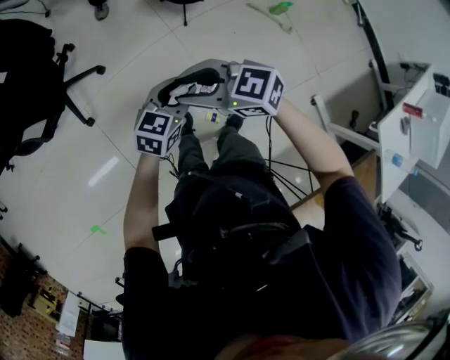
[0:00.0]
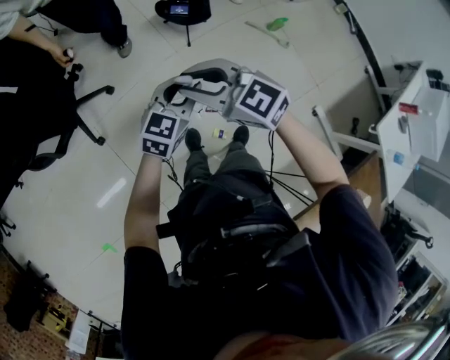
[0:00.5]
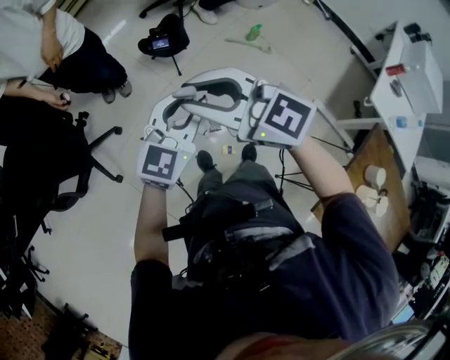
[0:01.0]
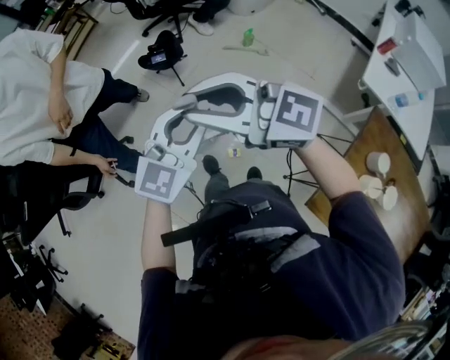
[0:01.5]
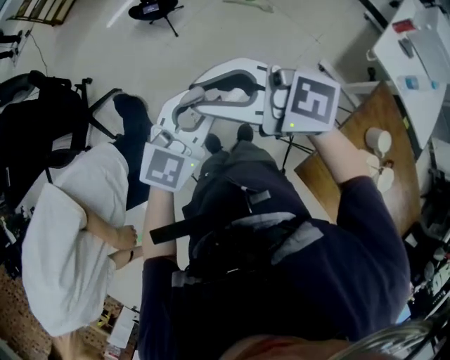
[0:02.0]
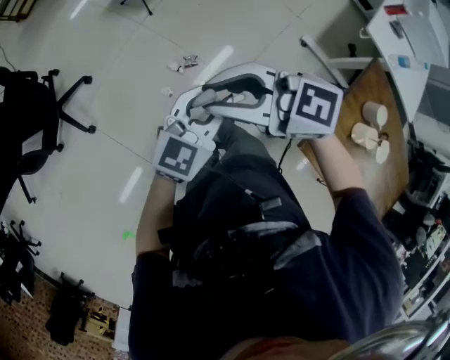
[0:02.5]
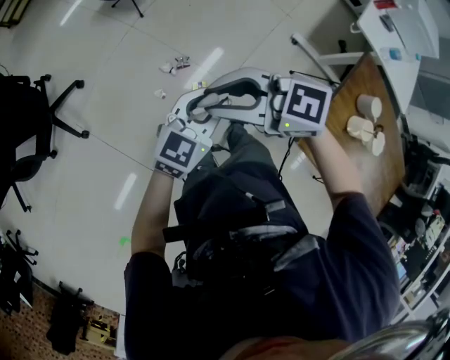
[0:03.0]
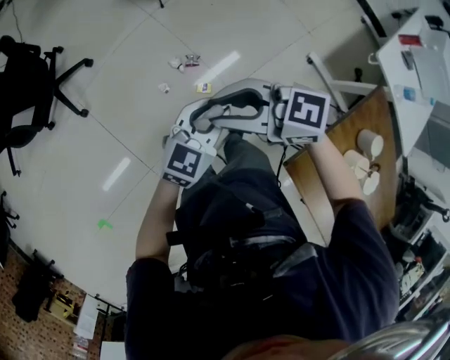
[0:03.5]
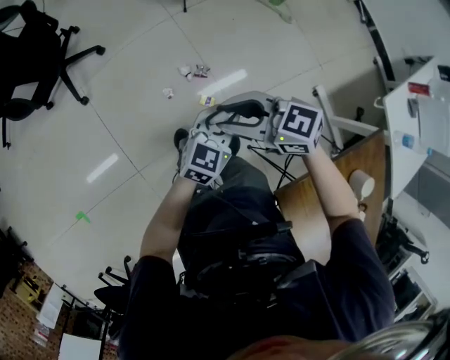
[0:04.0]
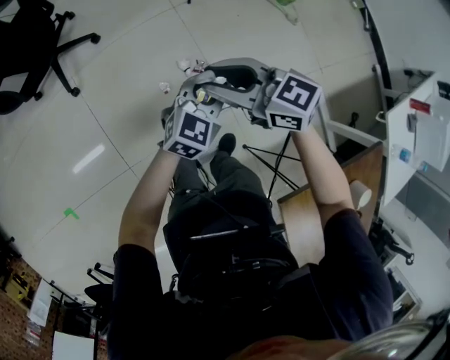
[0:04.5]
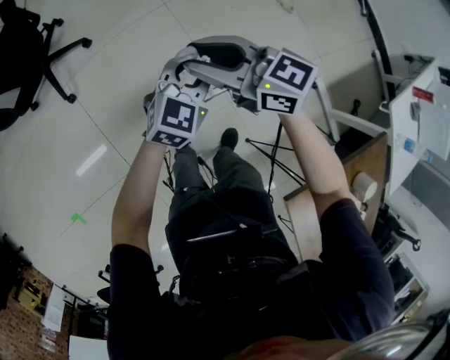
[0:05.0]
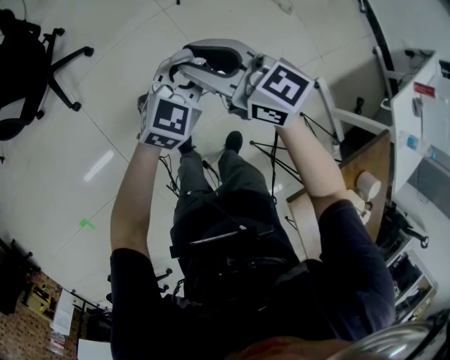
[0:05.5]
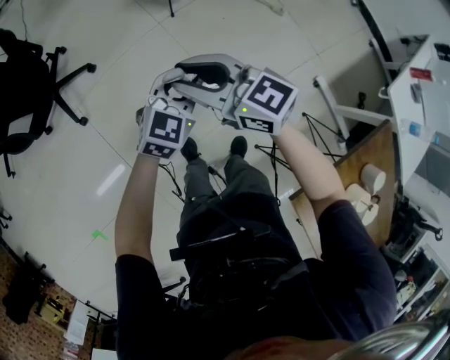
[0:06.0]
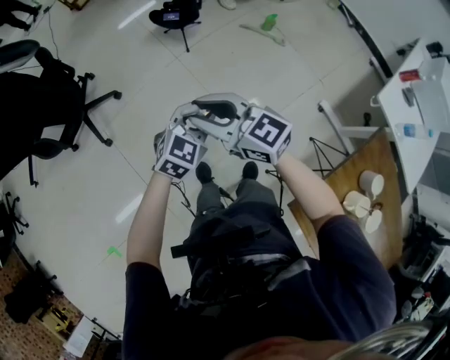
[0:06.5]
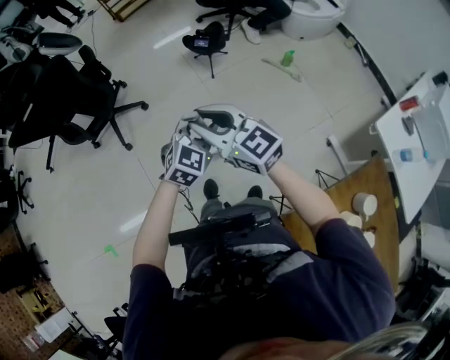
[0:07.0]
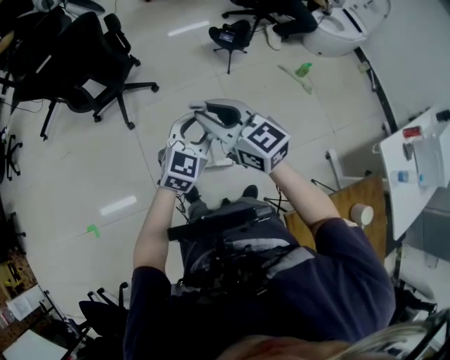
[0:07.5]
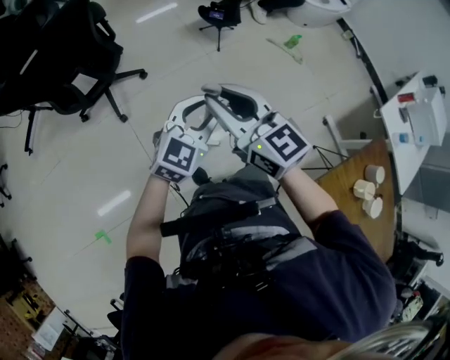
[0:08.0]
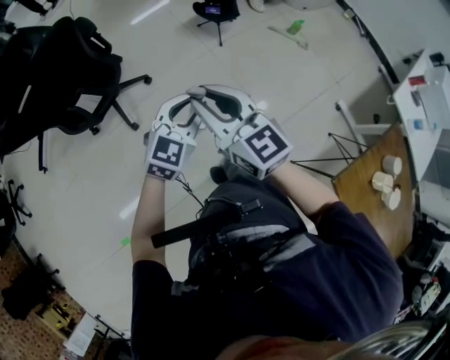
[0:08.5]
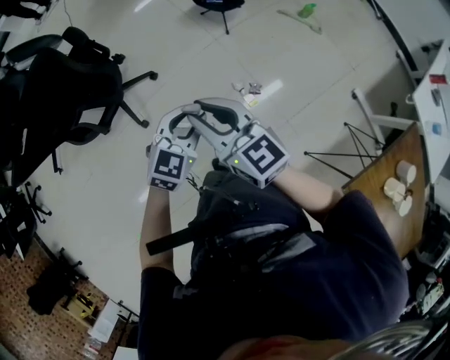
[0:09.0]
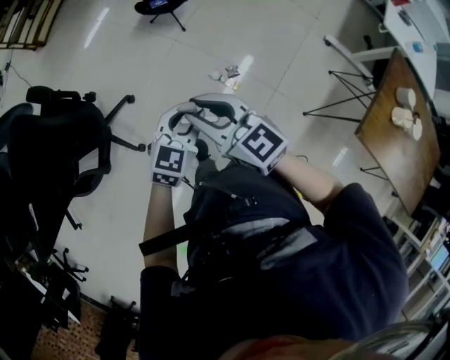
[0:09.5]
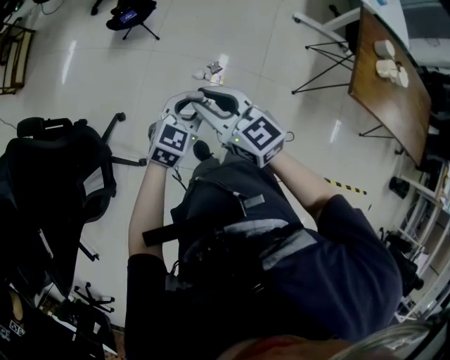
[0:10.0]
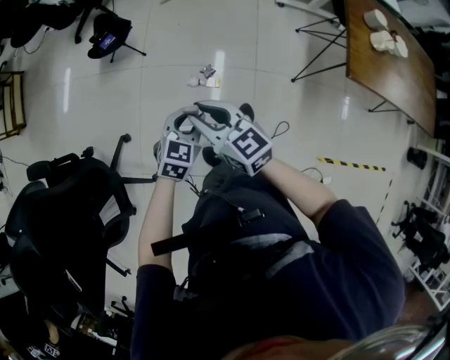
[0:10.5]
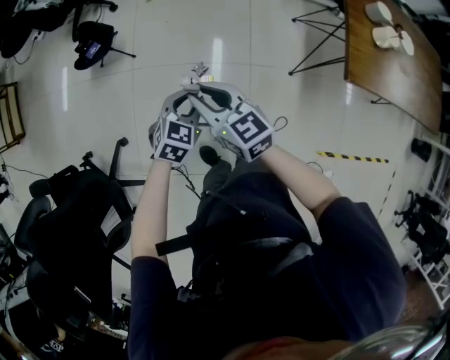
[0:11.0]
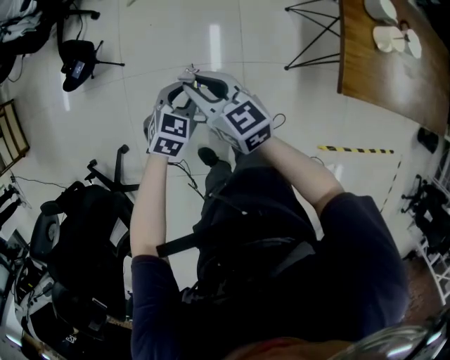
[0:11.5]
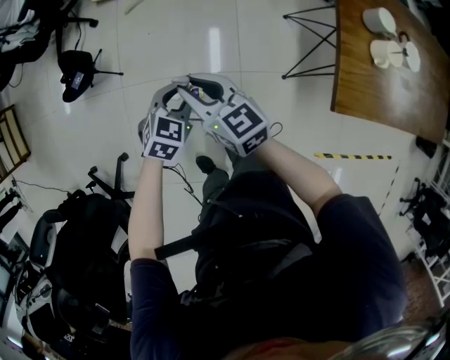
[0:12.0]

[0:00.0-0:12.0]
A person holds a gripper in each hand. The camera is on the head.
0:00.0 to 0:02.0: The left gripper moves roughly 35 cm, and changes its angle by about 30 degrees. The right gripper ends up some 35 cm from where it was, and changes its angle by about 30 degrees.
0:02.0 to 0:04.0: The two grippers go roughly 25 cm downward. The left gripper swivels roughly 20 degrees. The right gripper changes its angle by roughly 30 degrees.
0:04.0 to 0:06.0: The left gripper ends up approximately 15 cm from where it was. The right gripper moves about 15 cm, and changes its angle by about 20 degrees.
0:06.0 to 0:08.0: Both grippers move to the left, upward and backward, about 30 cm.
0:08.0 to 0:10.0: The grippers both shift downward by some 15 cm. The right gripper turns by some 40 degrees. The left gripper turns by approximately 50 degrees.
0:10.0 to 0:12.0: The grippers both shift forward and to the right by approximately 35 cm. The right gripper rotates approximately 20 degrees, while the left gripper rotates approximately 20 degrees.

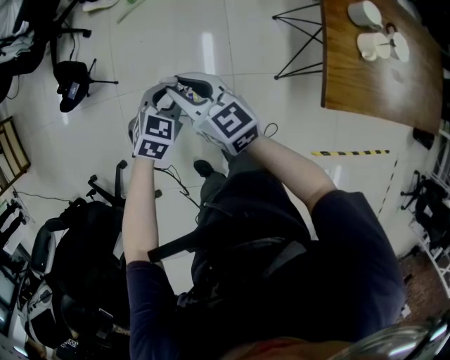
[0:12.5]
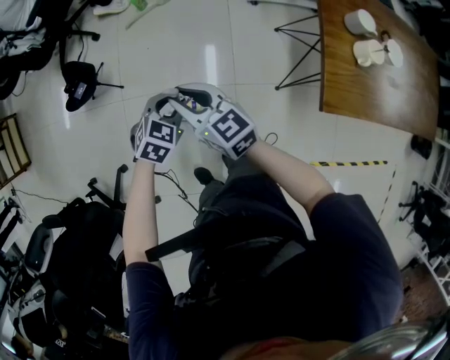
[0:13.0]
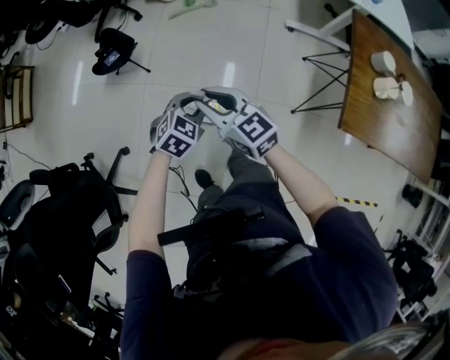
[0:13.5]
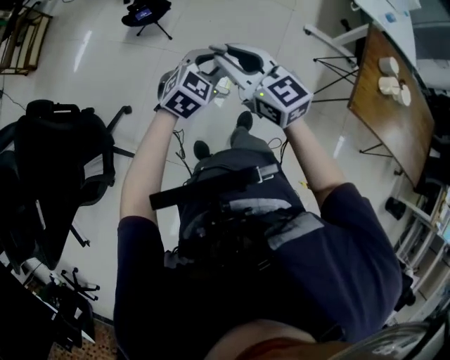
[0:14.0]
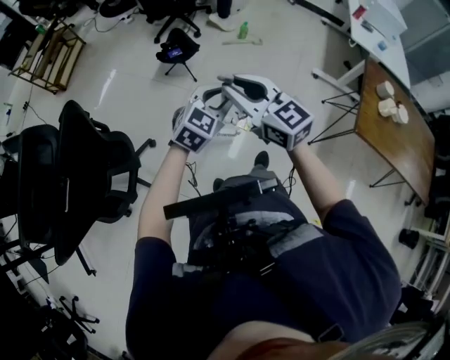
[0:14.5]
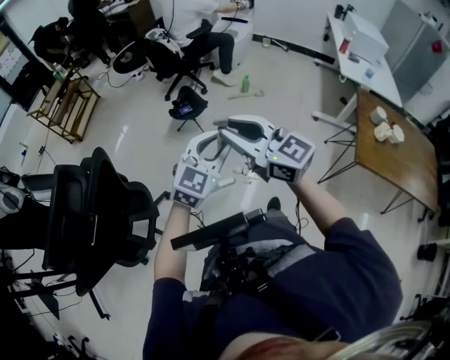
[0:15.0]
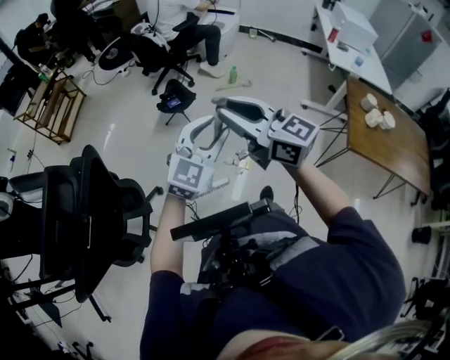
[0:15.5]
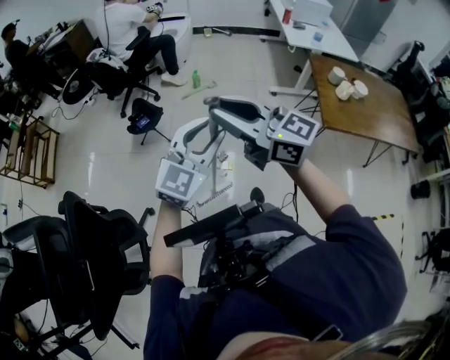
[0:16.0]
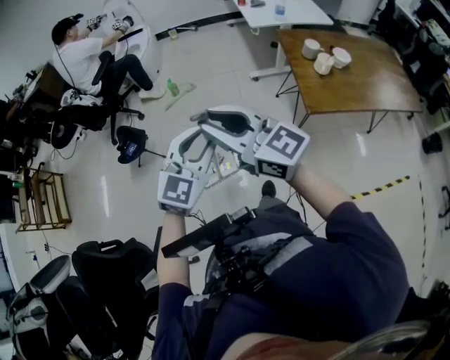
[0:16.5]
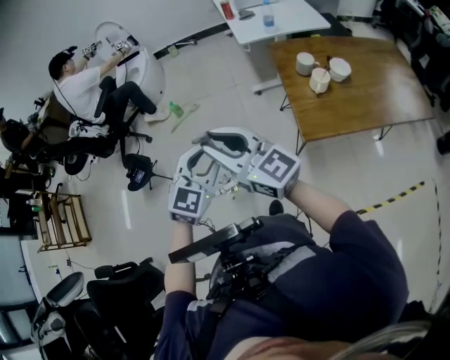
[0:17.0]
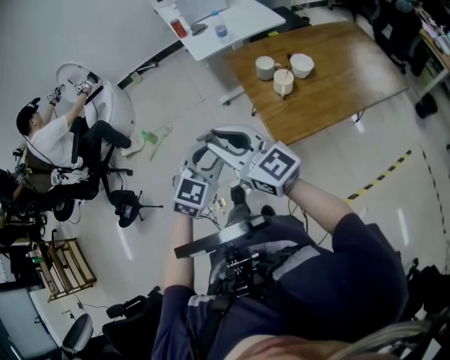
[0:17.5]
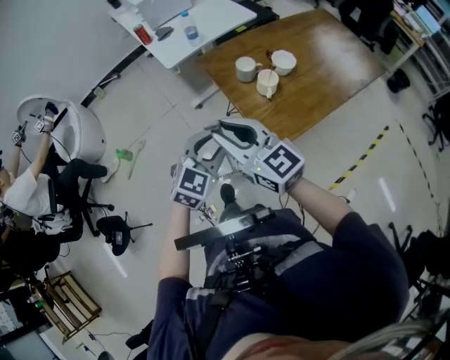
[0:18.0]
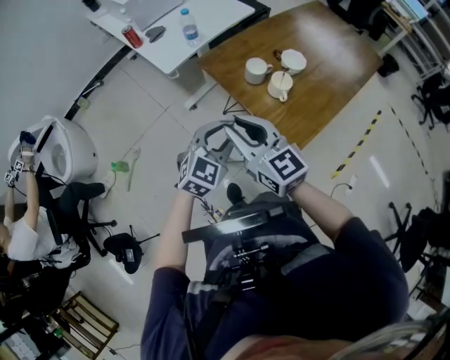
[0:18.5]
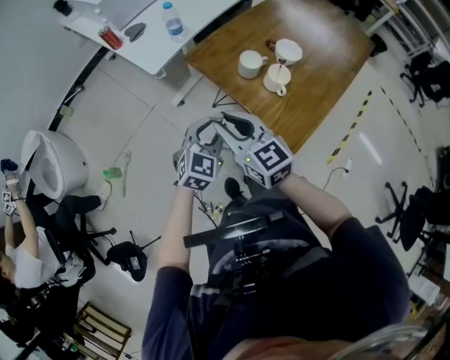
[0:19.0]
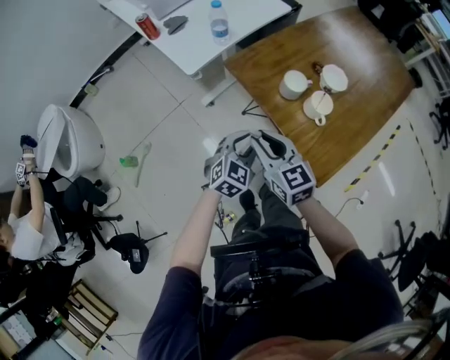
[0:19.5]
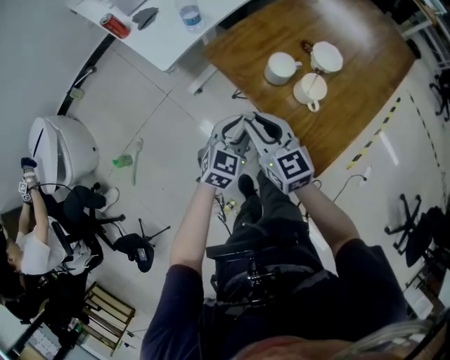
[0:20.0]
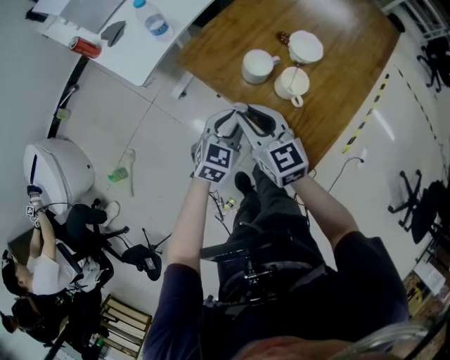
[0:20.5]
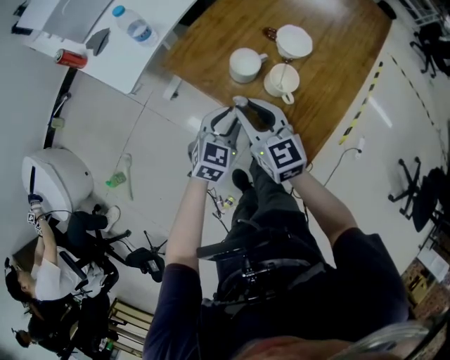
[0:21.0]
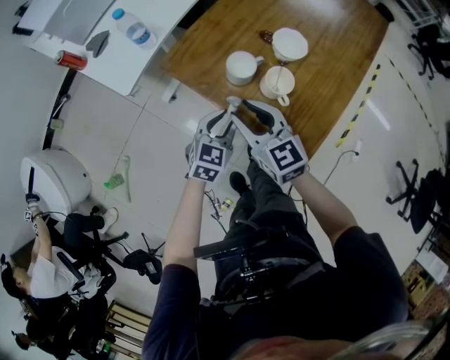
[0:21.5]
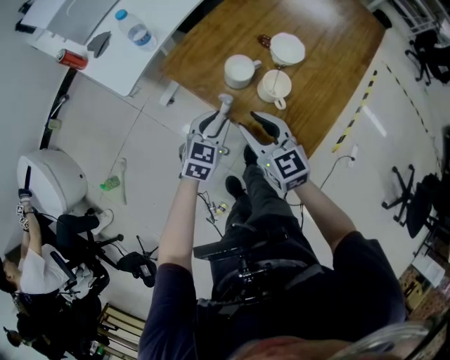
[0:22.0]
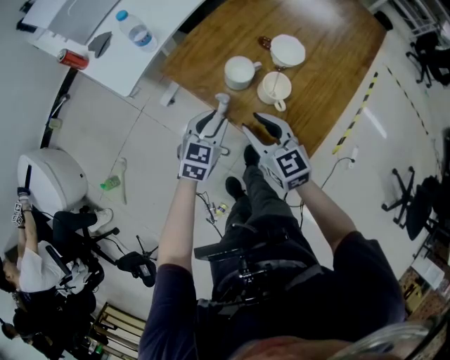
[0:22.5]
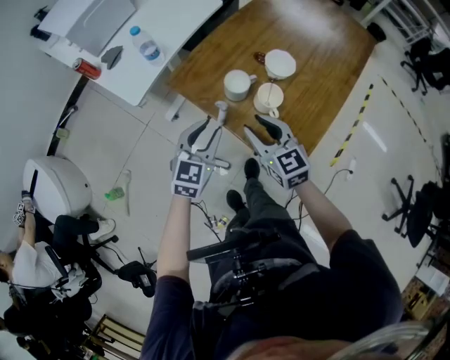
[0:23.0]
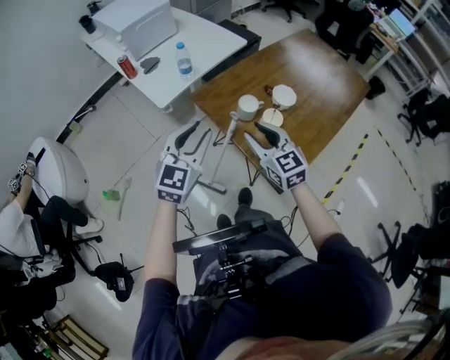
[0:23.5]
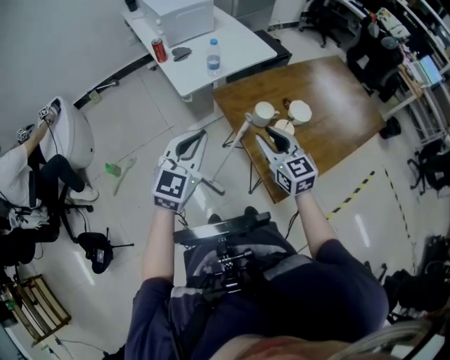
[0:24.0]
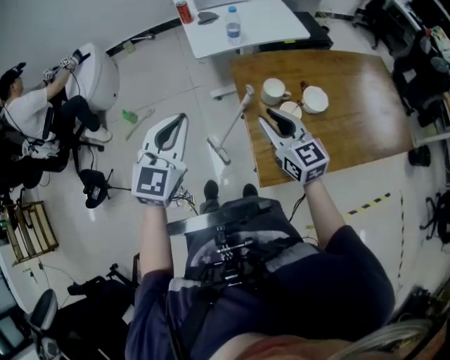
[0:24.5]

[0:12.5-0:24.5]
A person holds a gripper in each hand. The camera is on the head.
0:12.5 to 0:14.5: The grippers both shift to the left, backward and upward by about 40 cm. The left gripper swivels some 30 degrees, while the right gripper rotates about 30 degrees.
0:14.5 to 0:16.5: Both grippers move to the right and upward, some 25 cm. The right gripper swivels roughly 20 degrees, while the left gripper changes its angle by approximately 30 degrees.
0:16.5 to 0:18.5: Both grippers are carried roughly 50 cm. The right gripper changes its angle by about 60 degrees. The left gripper swivels roughly 40 degrees.
0:18.5 to 0:20.5: The grippers both shift downward and forward by about 25 cm. The right gripper changes its angle by some 20 degrees.
0:20.5 to 0:22.5: The right gripper heads to the right, covering approximately 5 cm.
0:22.5 to 0:24.5: The right gripper travels upward by some 15 cm, and turns by some 40 degrees. Meanwhile the left gripper goes approximately 30 cm upward, turns by approximately 50 degrees, and closes its fingers.

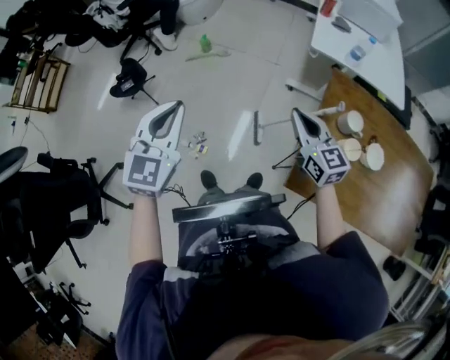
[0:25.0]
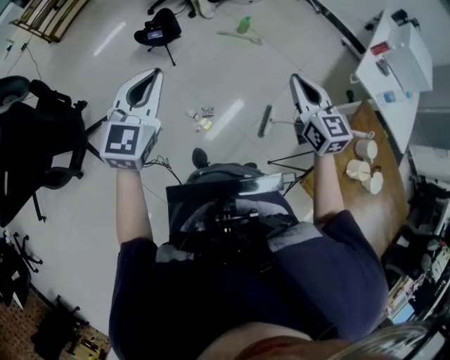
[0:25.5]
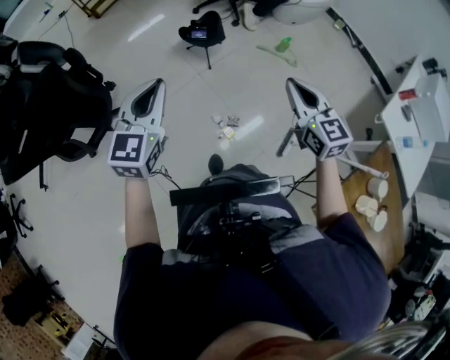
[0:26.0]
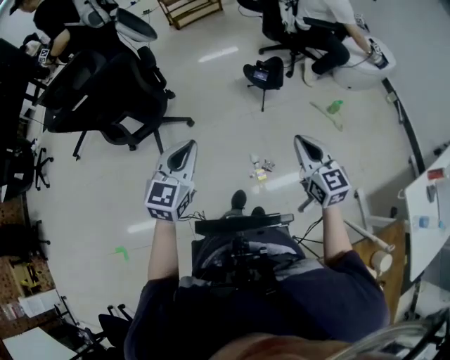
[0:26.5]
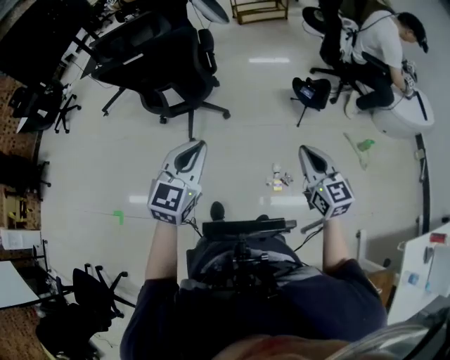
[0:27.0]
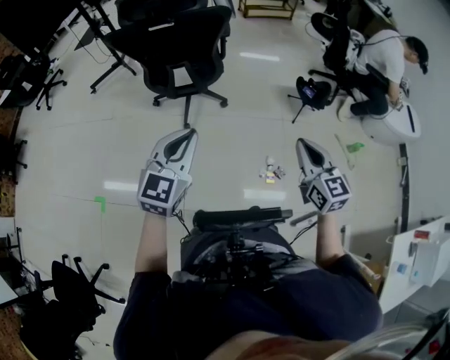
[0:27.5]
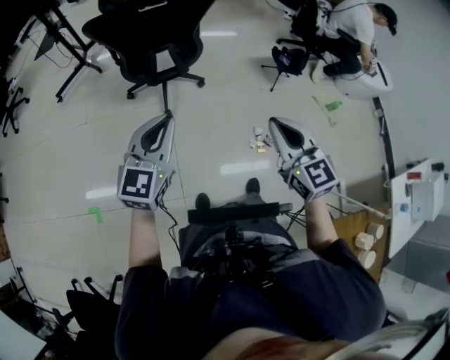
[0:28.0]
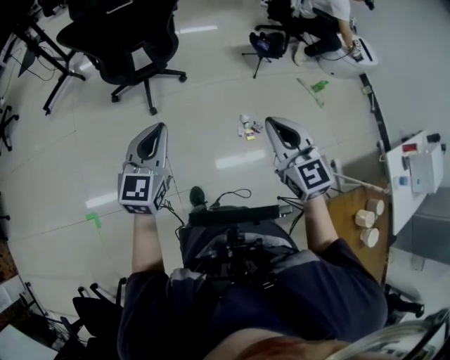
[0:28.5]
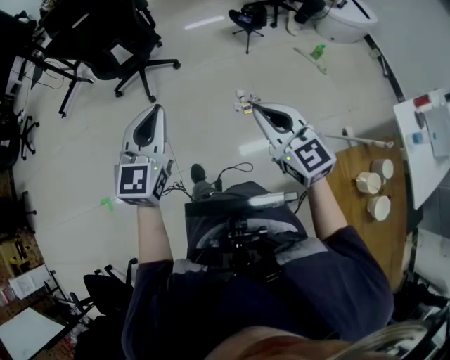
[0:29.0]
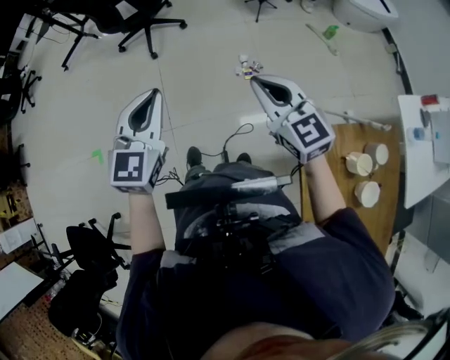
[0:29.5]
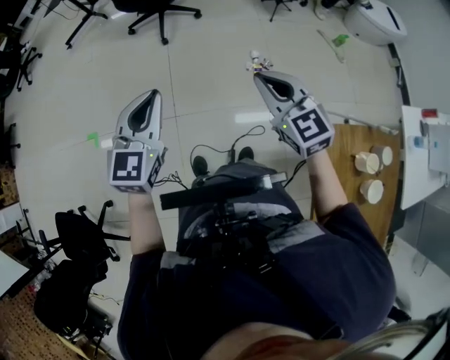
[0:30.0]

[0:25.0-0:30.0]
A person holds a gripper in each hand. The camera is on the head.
0:25.0 to 0:27.5: Both grippers are carried roughly 60 cm. The left gripper rotates roughly 70 degrees. Meanwhile the right gripper turns by approximately 70 degrees.
0:27.5 to 0:30.0: Both grippers travel together backward, about 35 cm.
